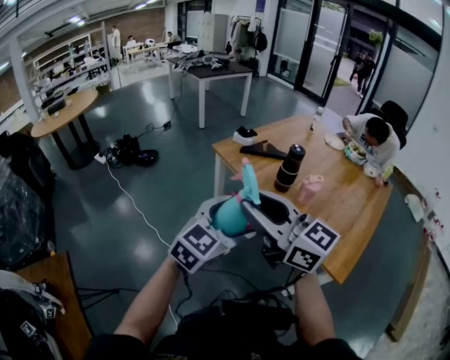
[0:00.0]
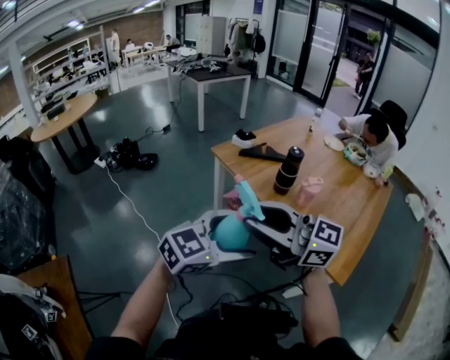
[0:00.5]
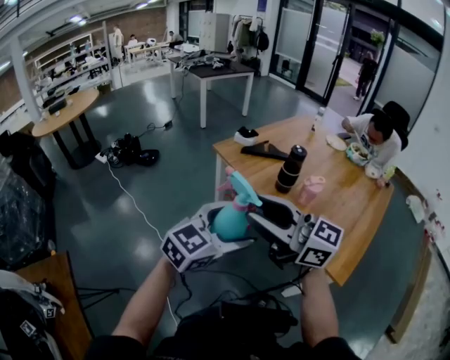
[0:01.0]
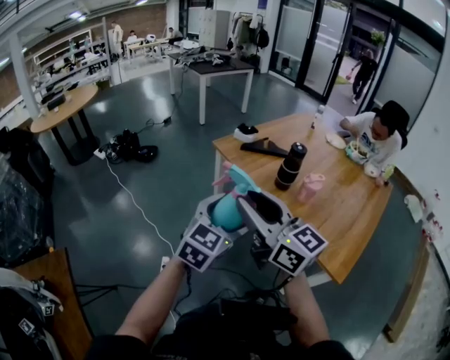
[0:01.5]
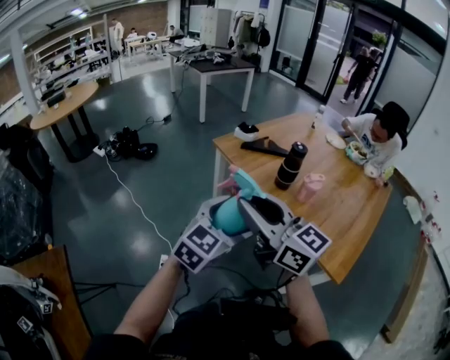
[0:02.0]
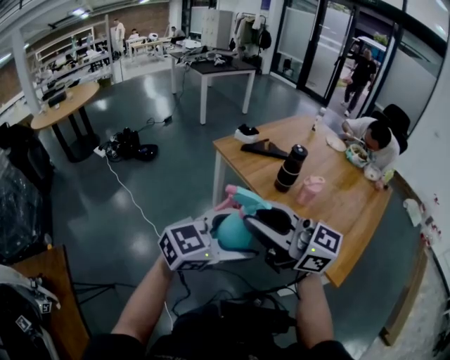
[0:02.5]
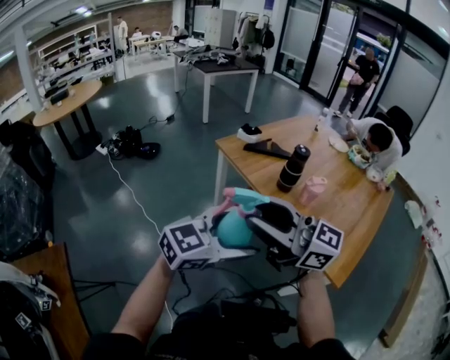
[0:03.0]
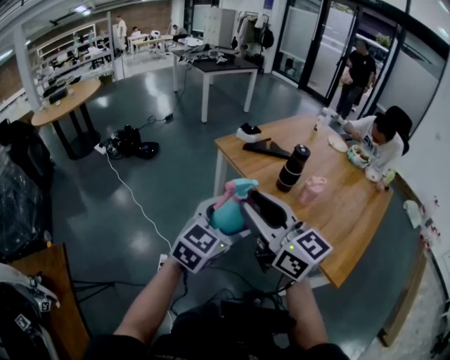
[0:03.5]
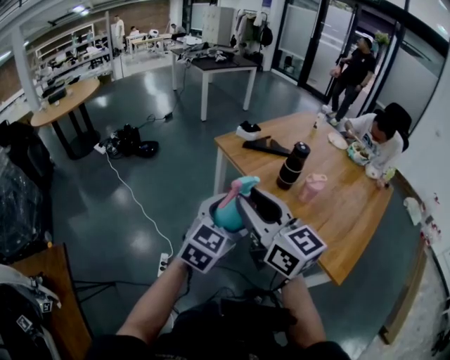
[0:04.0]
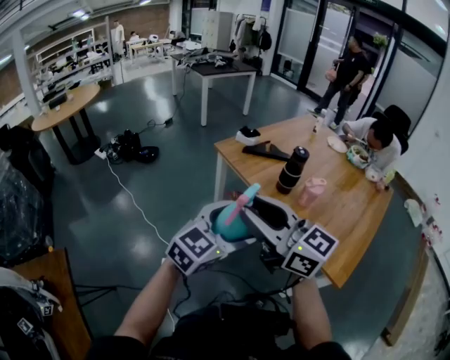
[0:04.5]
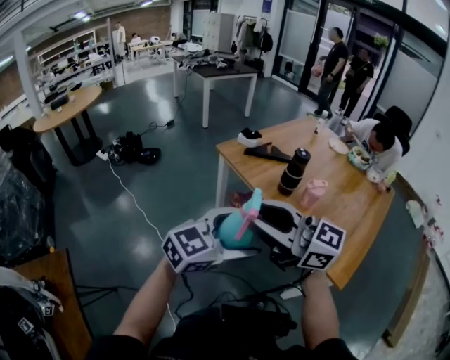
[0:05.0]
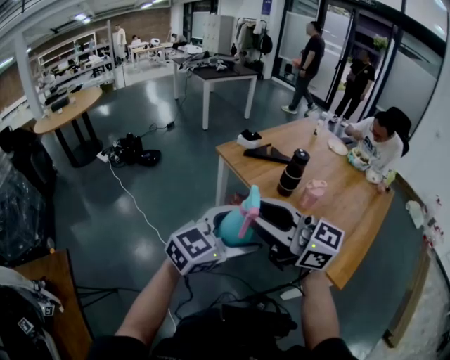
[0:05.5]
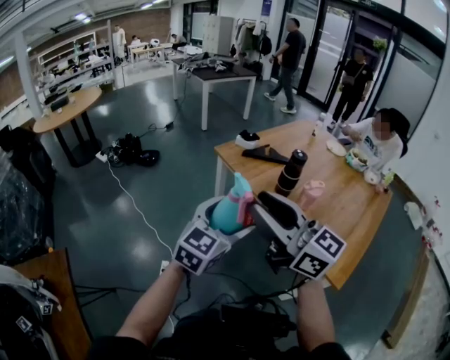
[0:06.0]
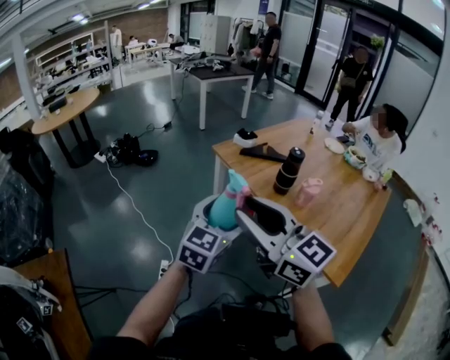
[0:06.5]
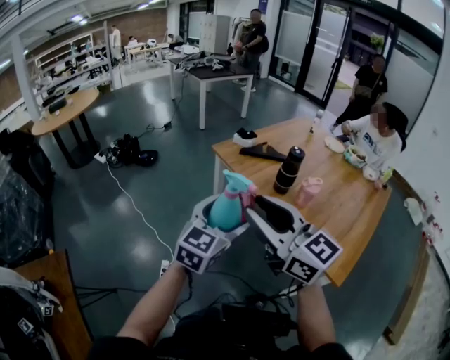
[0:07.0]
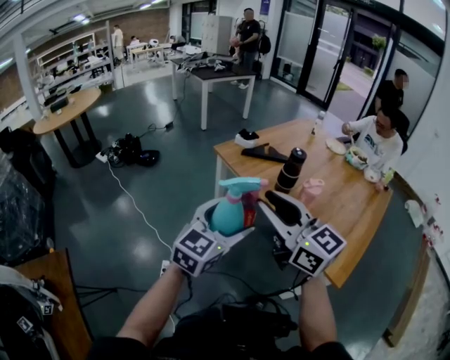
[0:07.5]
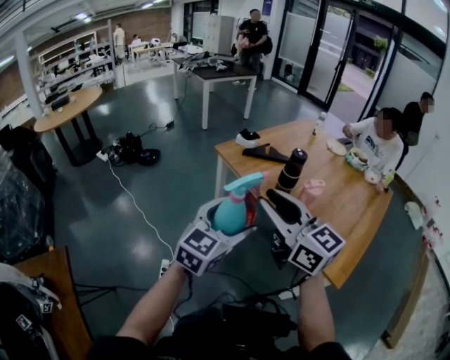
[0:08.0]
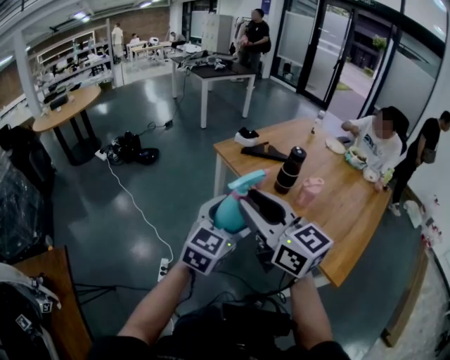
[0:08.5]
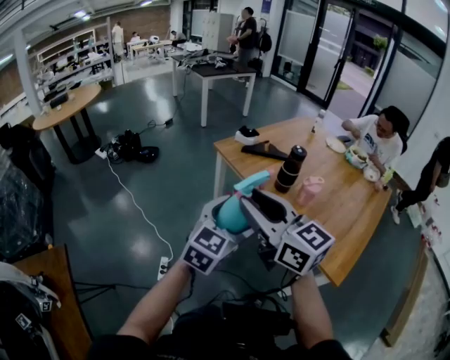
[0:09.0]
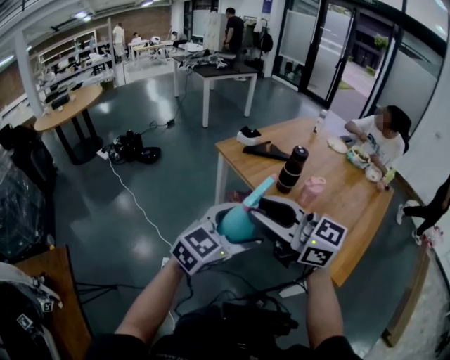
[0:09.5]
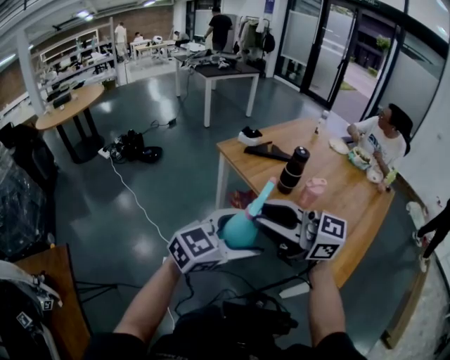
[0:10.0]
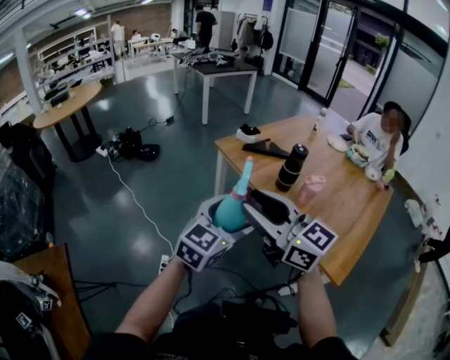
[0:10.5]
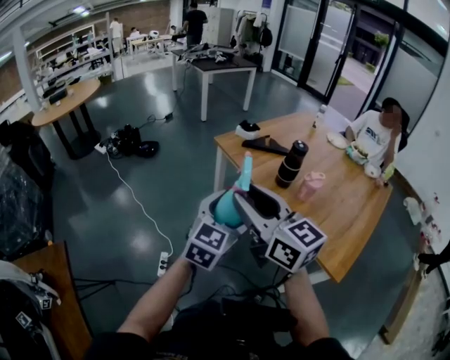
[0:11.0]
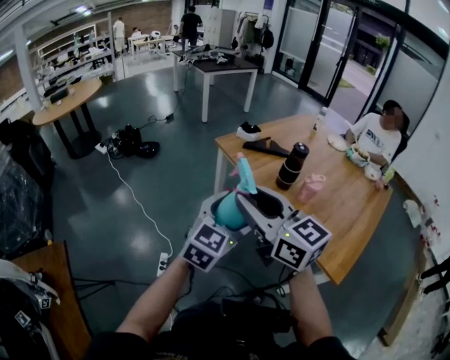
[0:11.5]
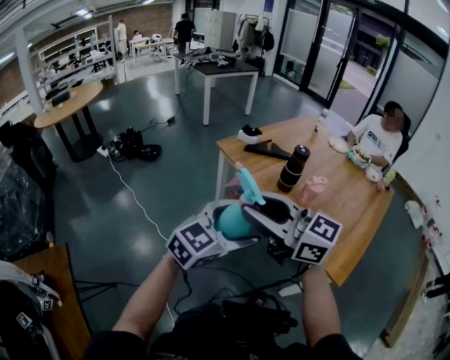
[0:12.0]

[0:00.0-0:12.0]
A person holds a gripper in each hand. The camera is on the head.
0:04.0 to 0:06.0: The right gripper ends up some 5 cm from where it was.
0:06.0 to 0:08.0: There are only small adjustments of the grippers.
0:08.0 to 0:10.0: The right gripper rotates about 30 degrees, while the left gripper moves roughly 5 cm, and swivels approximately 20 degrees.

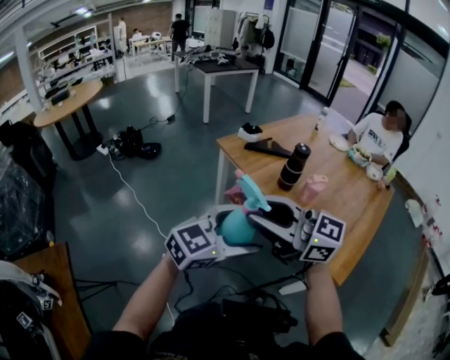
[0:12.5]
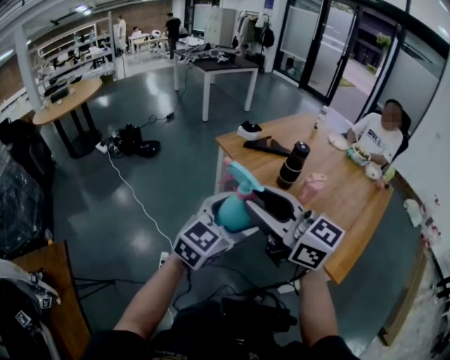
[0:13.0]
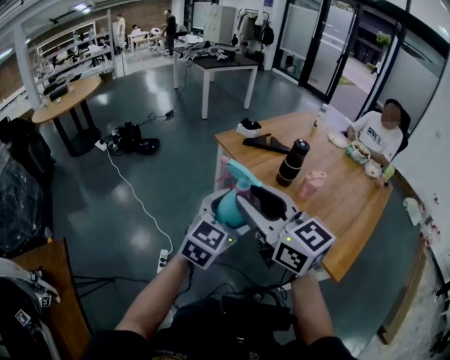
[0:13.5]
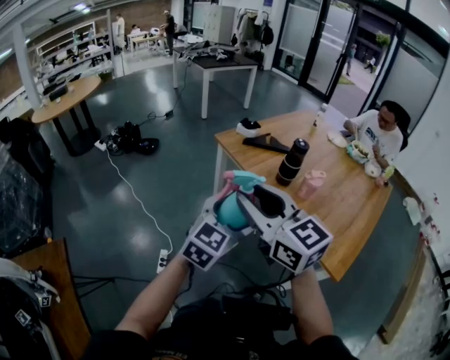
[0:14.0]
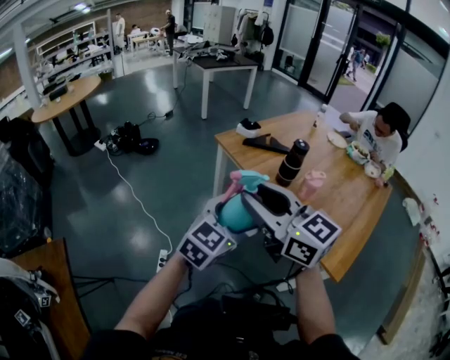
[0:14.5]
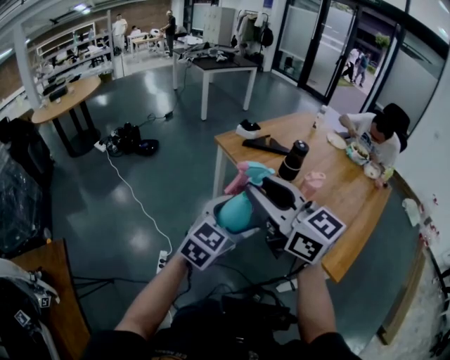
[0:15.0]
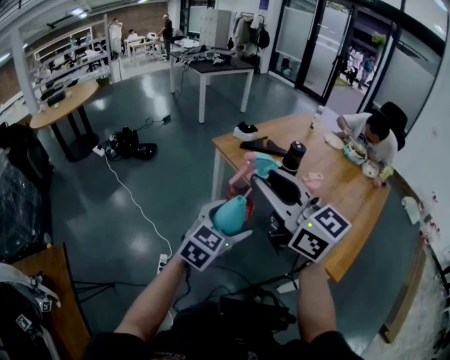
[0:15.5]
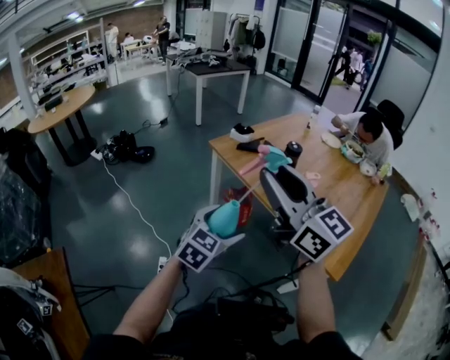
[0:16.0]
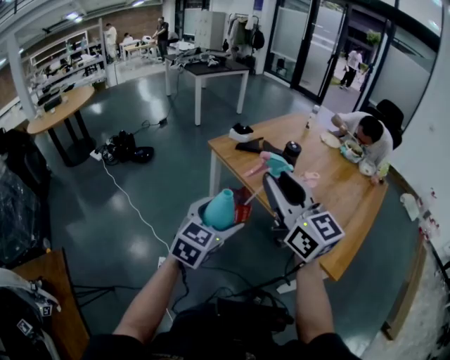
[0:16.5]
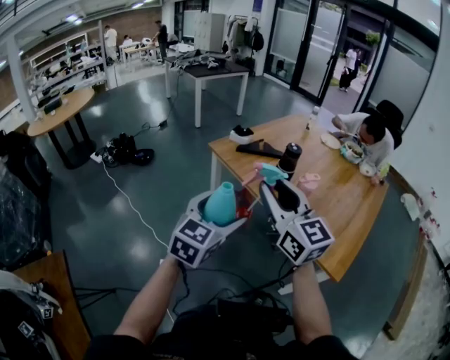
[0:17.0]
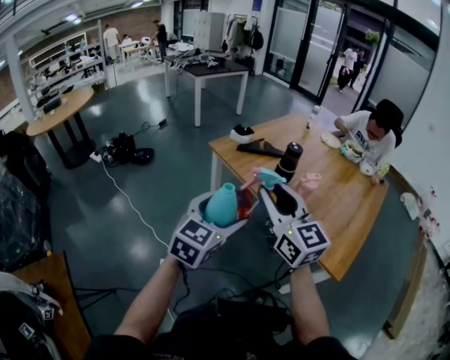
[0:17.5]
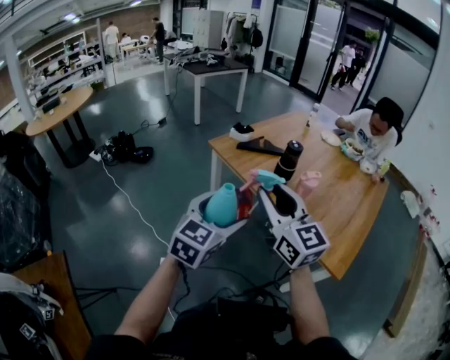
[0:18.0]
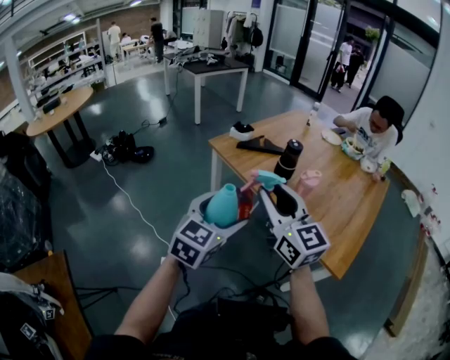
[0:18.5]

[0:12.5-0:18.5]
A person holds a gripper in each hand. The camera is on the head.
0:12.5 to 0:14.5: The right gripper turns by roughly 20 degrees.
0:14.5 to 0:16.5: The right gripper travels to the right by some 5 cm, and turns by approximately 20 degrees; the left gripper changes place by some 5 cm.
0:16.5 to 0:18.5: The right gripper travels downward by about 5 cm.

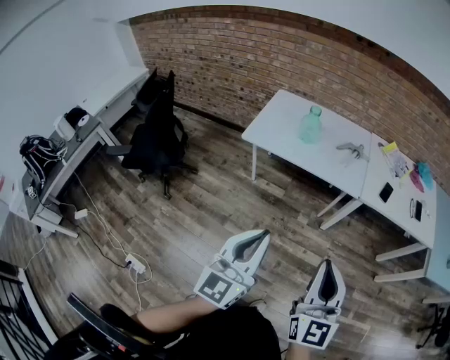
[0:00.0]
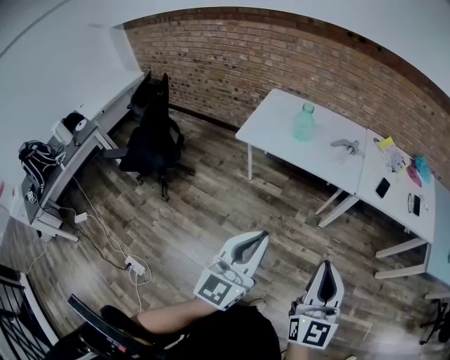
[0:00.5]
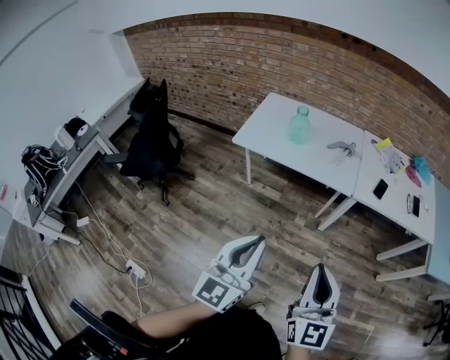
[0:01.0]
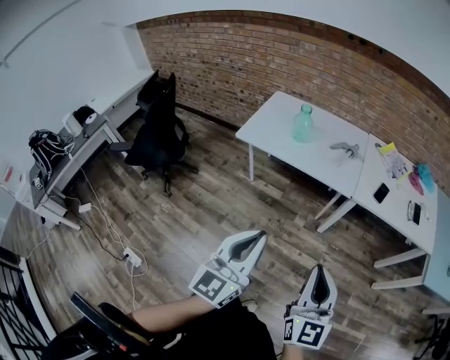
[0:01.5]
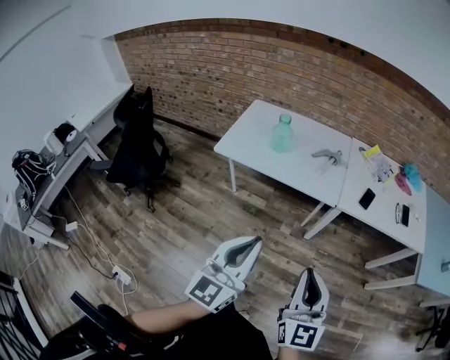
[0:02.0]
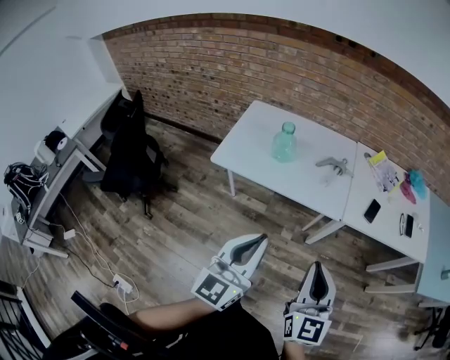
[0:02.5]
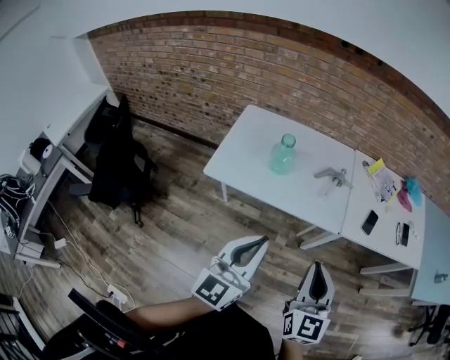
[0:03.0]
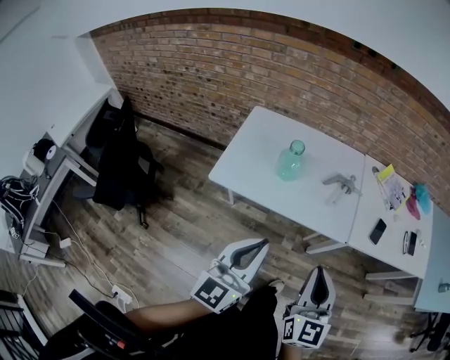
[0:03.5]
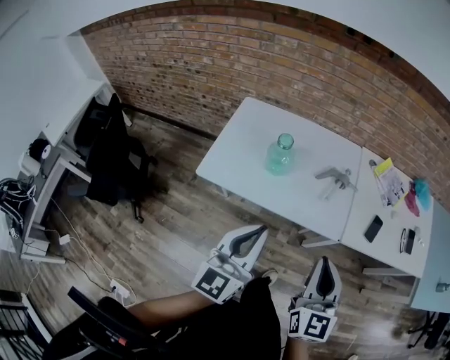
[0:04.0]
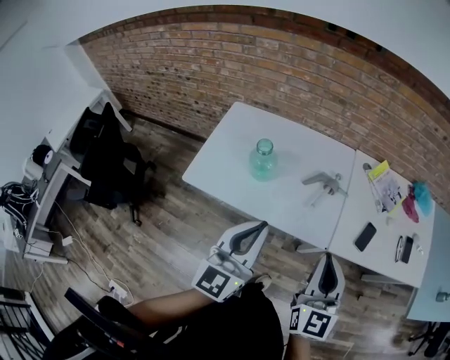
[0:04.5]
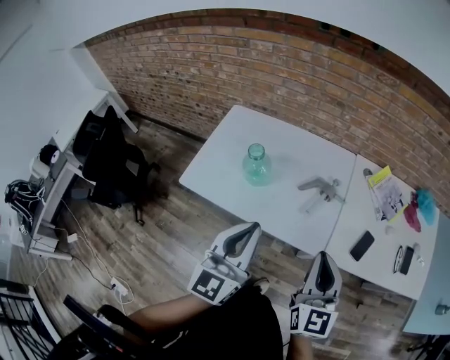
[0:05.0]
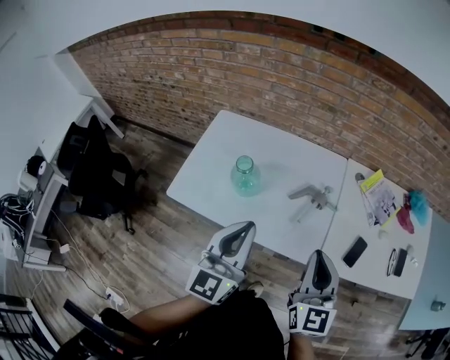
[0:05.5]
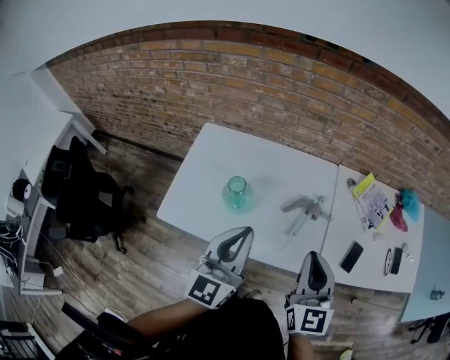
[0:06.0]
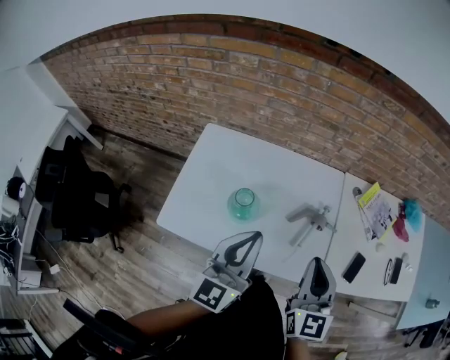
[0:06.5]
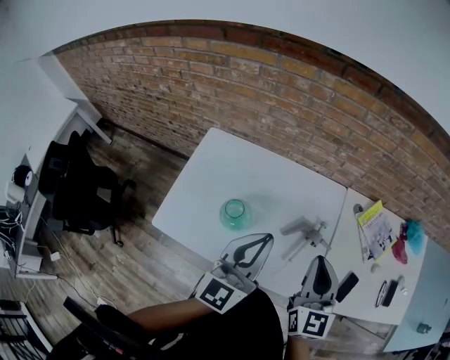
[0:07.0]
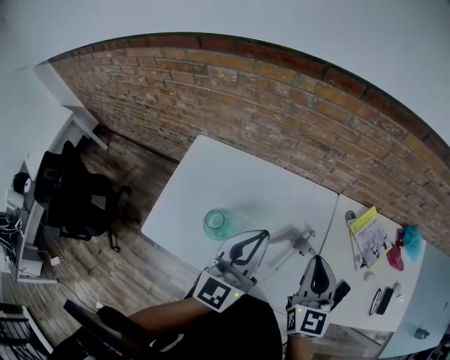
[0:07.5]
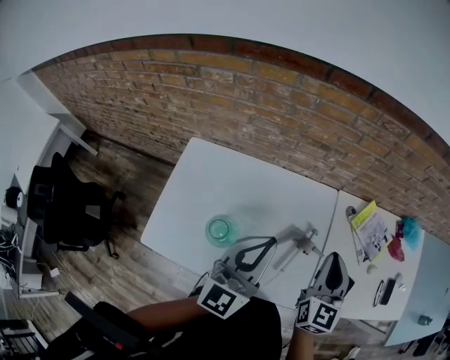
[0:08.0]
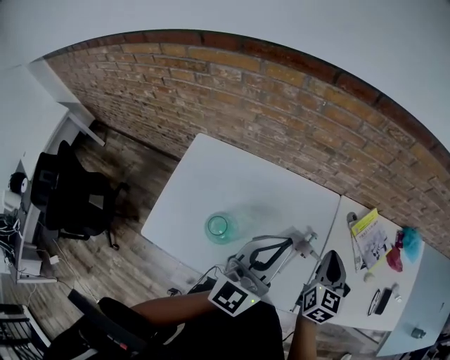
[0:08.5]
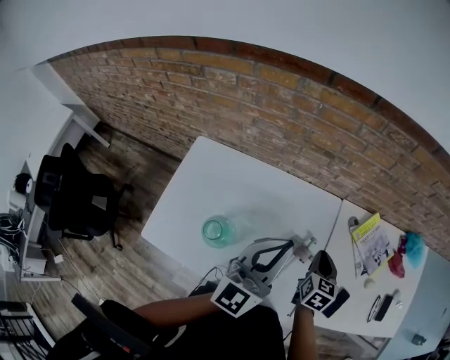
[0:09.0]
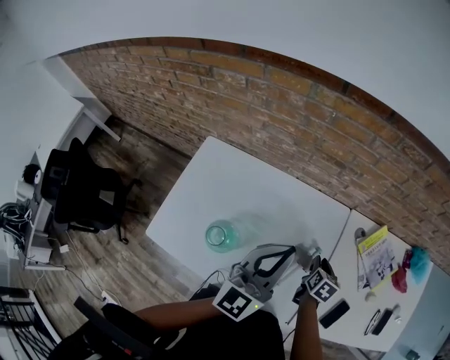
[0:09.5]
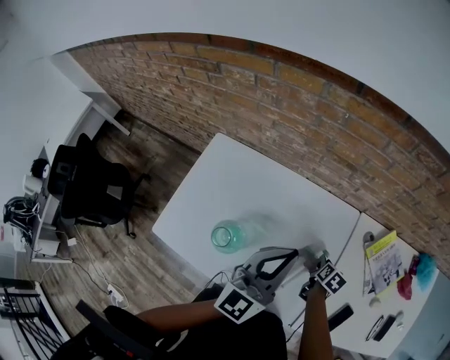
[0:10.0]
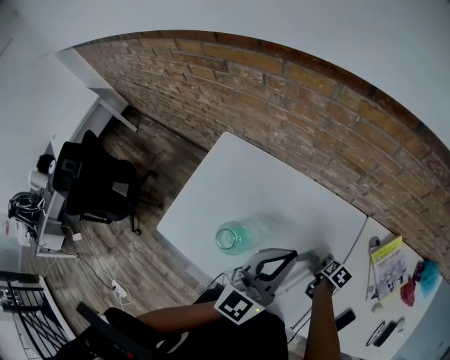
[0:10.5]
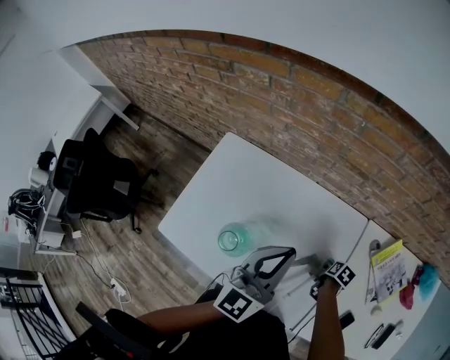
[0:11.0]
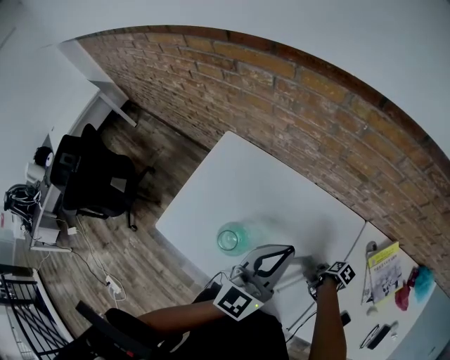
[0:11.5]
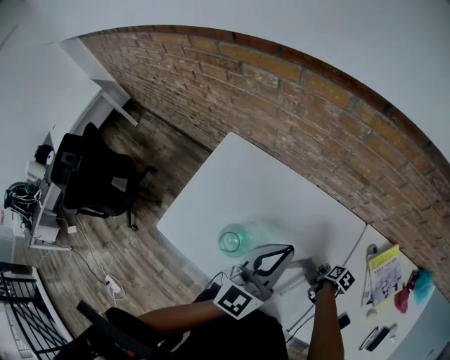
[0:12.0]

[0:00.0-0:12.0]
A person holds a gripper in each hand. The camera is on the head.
0:00.0 to 0:02.0: The grippers both shift to the right and forward by about 10 cm.
0:02.0 to 0:04.0: The grippers both shift forward by roughly 30 cm.
0:04.0 to 0:06.0: Both grippers travel together forward, about 20 cm.
0:06.0 to 0:08.0: The two grippers go roughly 20 cm forward.
0:08.0 to 0:10.0: The right gripper goes roughly 30 cm downward, points its fingers roughly 50 degrees further downward, and opens its fingers; the left gripper travels forward by about 5 cm.
0:10.0 to 0:12.0: The left gripper ends up roughly 5 cm from where it was; the right gripper travels downward by approximately 5 cm.
